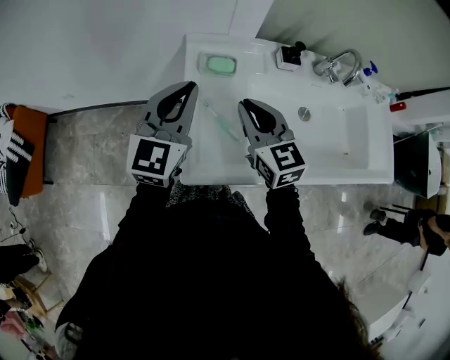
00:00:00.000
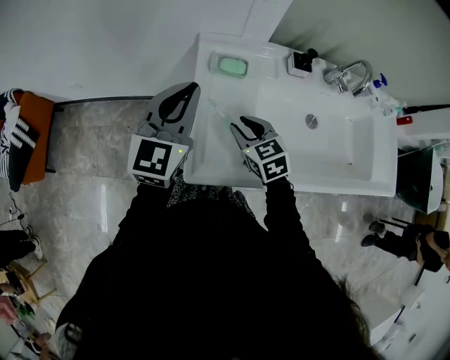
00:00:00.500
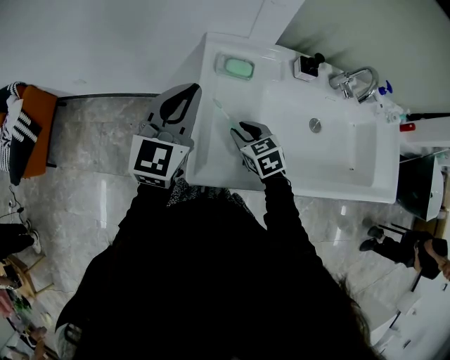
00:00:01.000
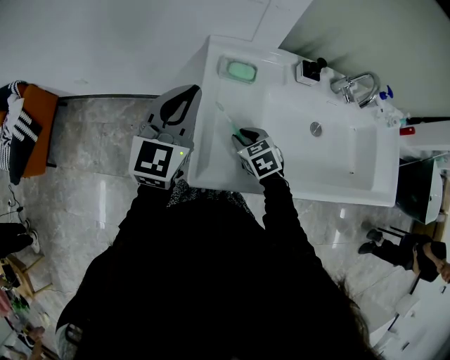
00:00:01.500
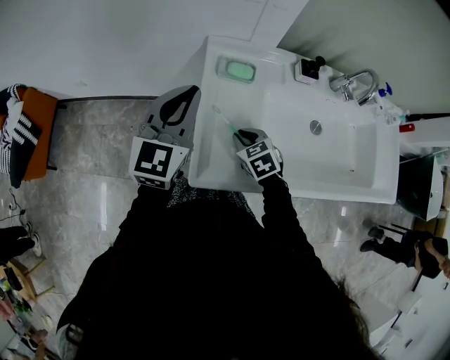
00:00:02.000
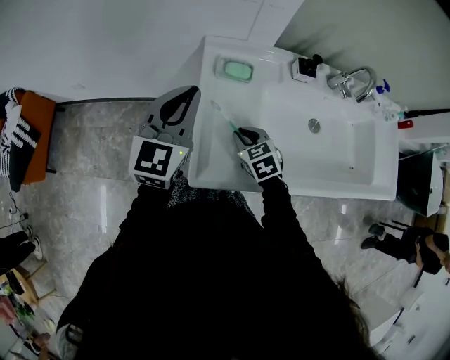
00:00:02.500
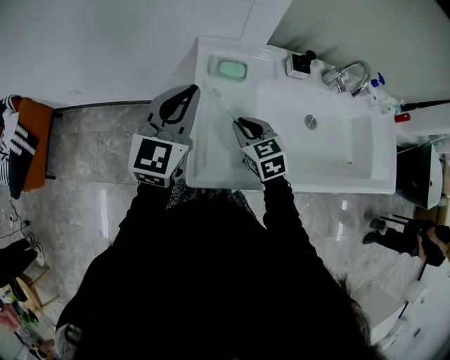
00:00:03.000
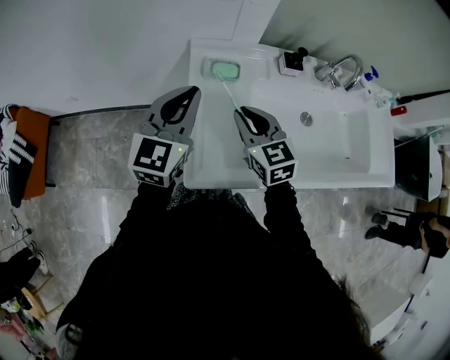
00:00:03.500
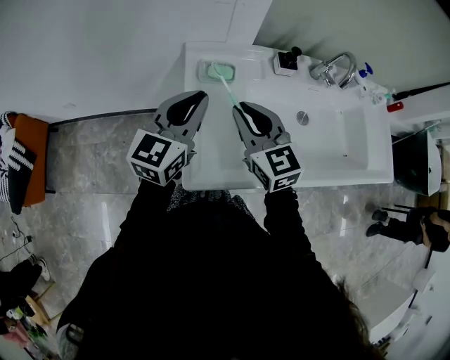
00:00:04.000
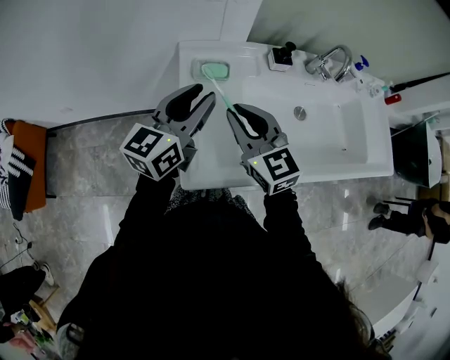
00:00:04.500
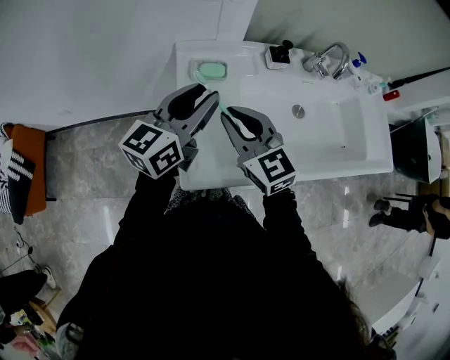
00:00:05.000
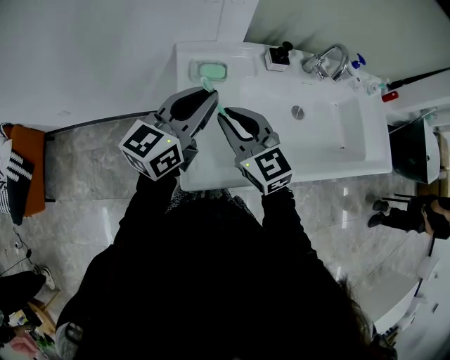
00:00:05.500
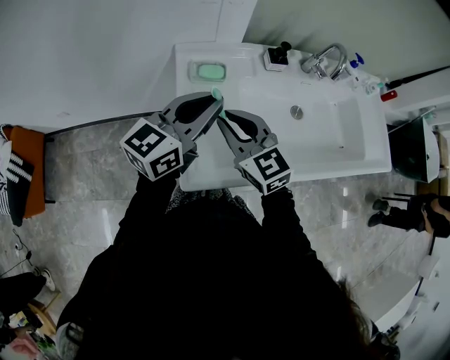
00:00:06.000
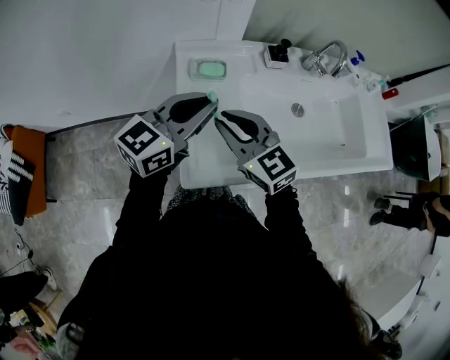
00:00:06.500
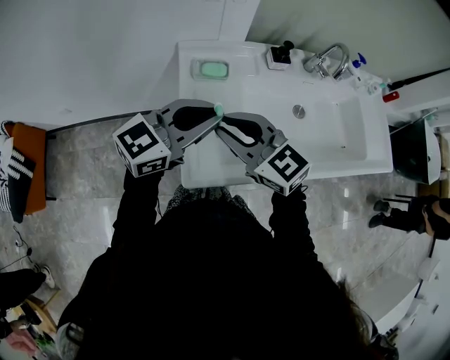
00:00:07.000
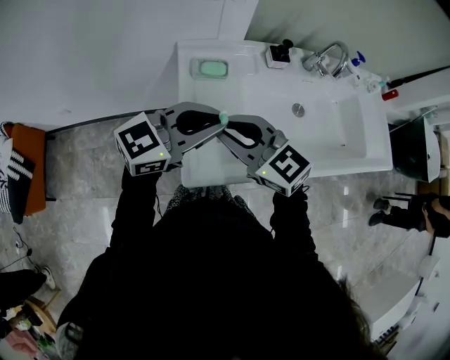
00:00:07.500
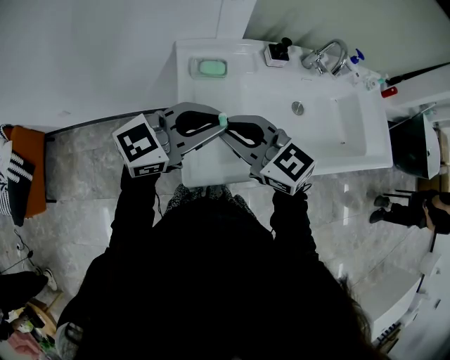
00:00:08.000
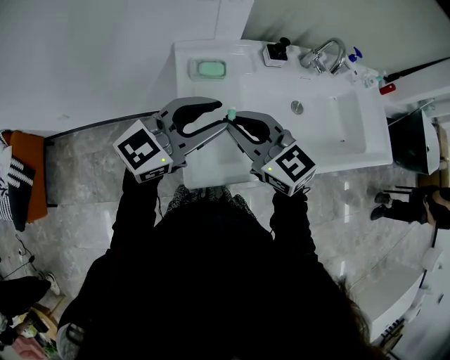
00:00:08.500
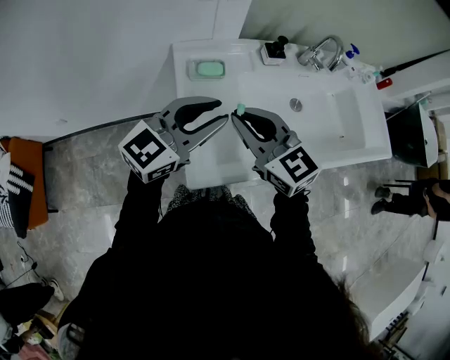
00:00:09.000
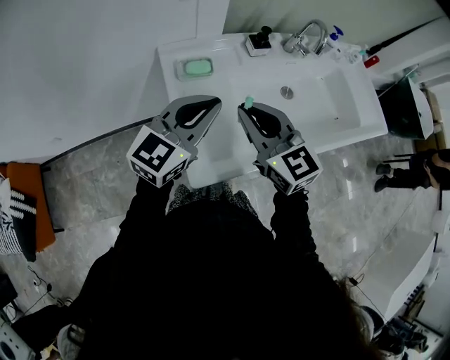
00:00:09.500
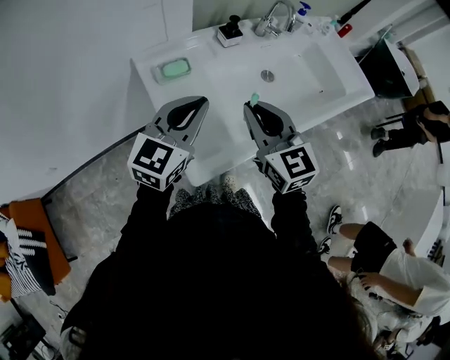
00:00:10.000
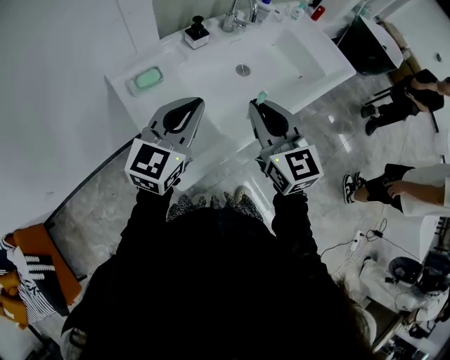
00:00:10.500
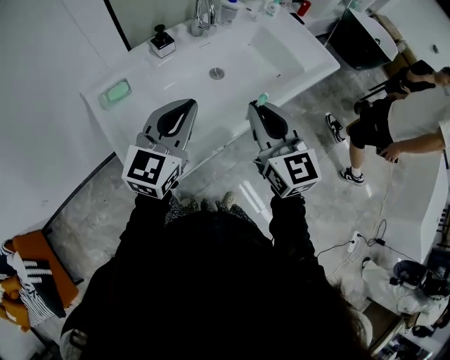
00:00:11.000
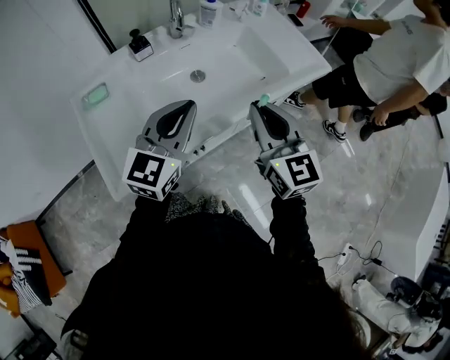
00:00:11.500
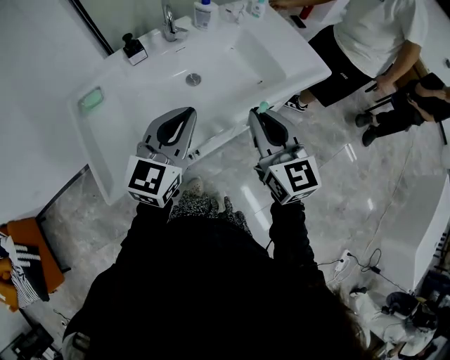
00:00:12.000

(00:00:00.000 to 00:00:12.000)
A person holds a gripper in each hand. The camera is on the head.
00:00:00.000 - 00:00:02.000: The right gripper is displaced downward by some 20 cm, and tips its fingers downward by about 40 degrees.
00:00:02.000 - 00:00:04.000: The left gripper is displaced to the right by about 5 cm; the right gripper goes approximately 20 cm upward, and tilts its fingers some 40 degrees upward.
00:00:04.000 - 00:00:06.000: The left gripper moves approximately 5 cm, rotates roughly 20 degrees, and opens and closes again.
00:00:06.000 - 00:00:08.000: The right gripper changes place by roughly 5 cm. Meanwhile the left gripper moves some 5 cm, and turns by roughly 30 degrees.
00:00:08.000 - 00:00:10.000: The right gripper shifts by some 10 cm, and changes its angle by some 50 degrees, while the left gripper opens, then closes again.
00:00:10.000 - 00:00:12.000: Both grippers travel together to the right, about 30 cm.

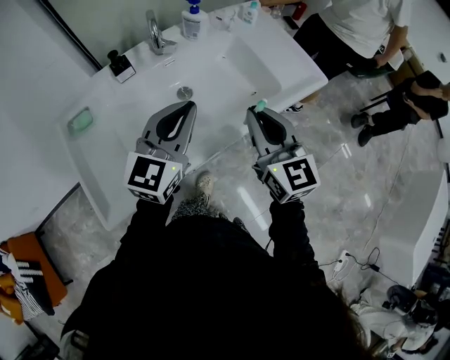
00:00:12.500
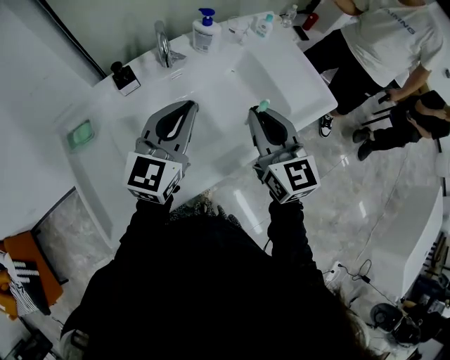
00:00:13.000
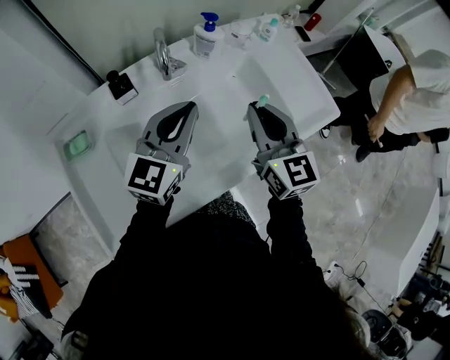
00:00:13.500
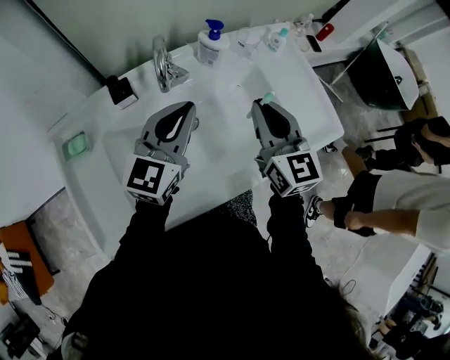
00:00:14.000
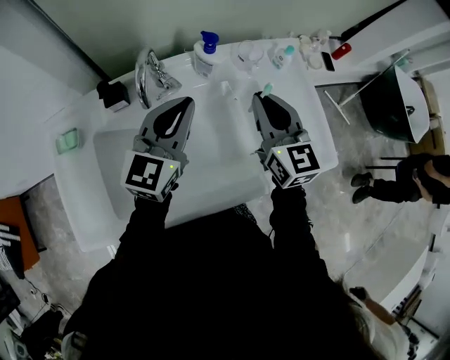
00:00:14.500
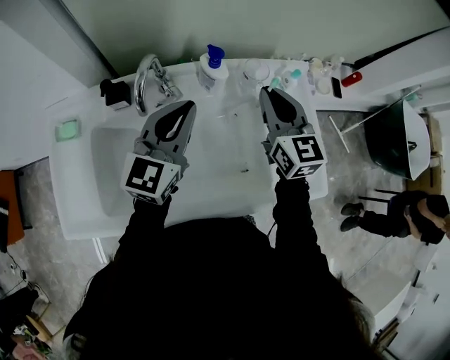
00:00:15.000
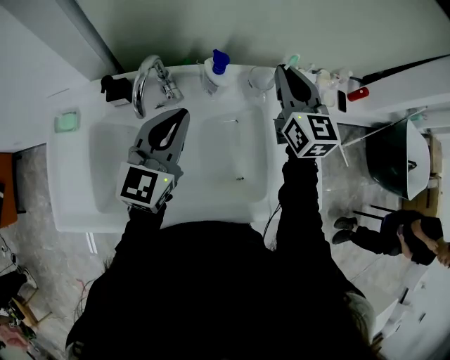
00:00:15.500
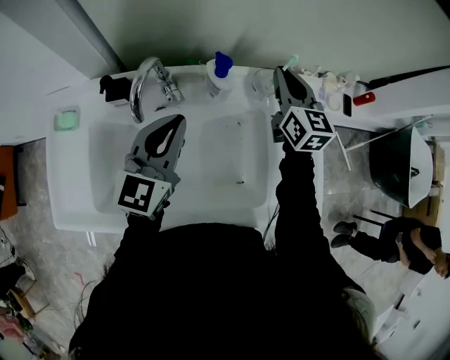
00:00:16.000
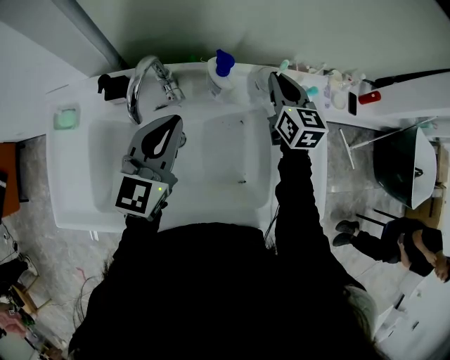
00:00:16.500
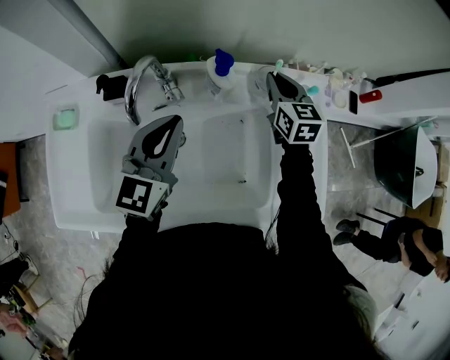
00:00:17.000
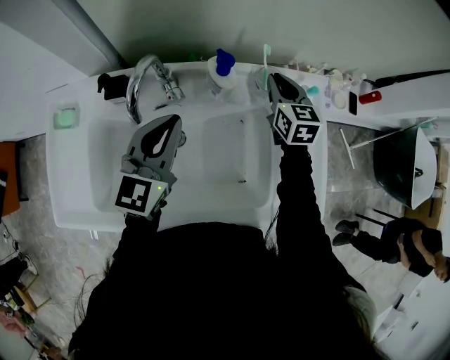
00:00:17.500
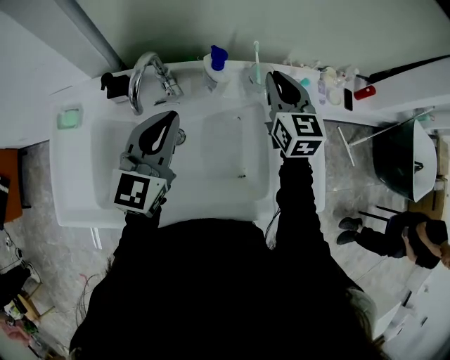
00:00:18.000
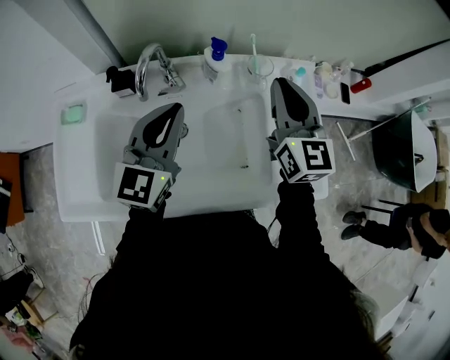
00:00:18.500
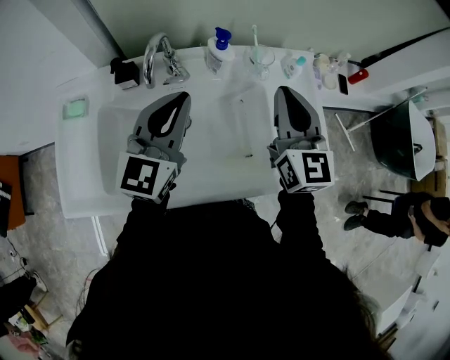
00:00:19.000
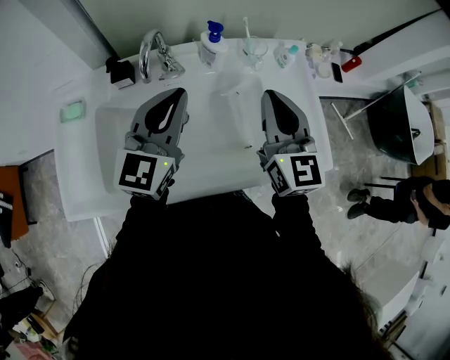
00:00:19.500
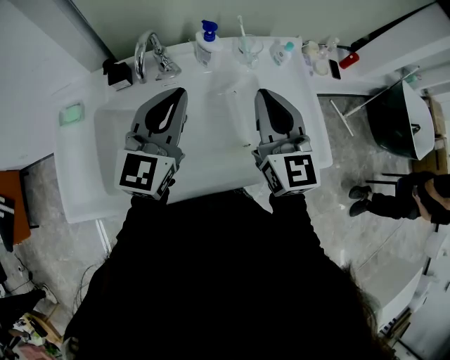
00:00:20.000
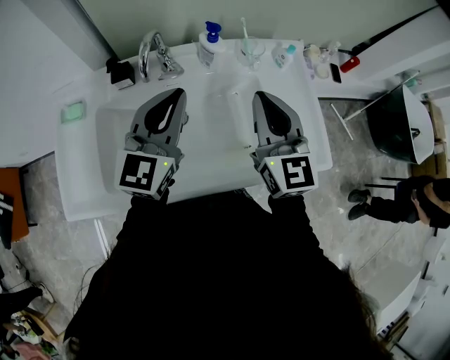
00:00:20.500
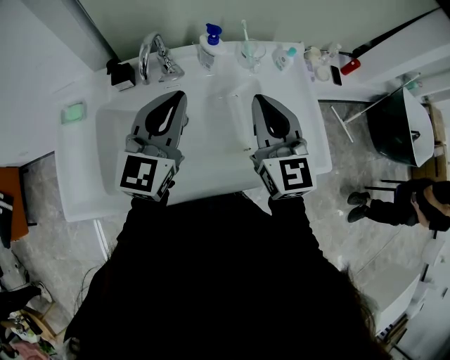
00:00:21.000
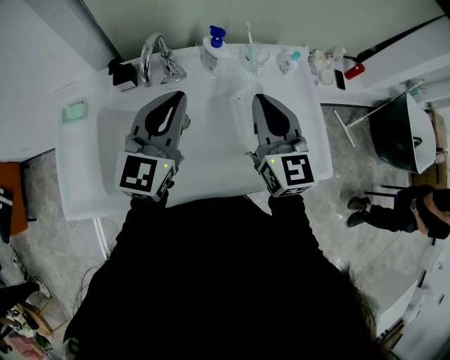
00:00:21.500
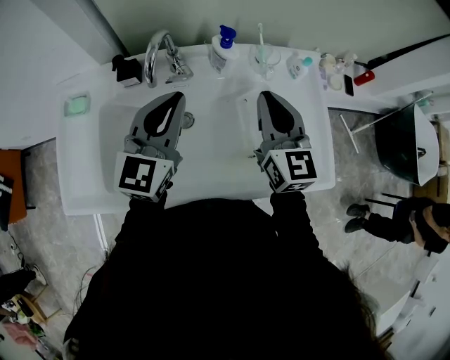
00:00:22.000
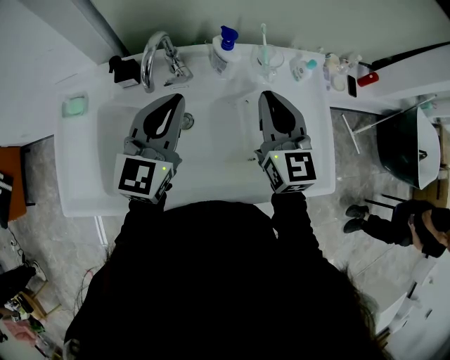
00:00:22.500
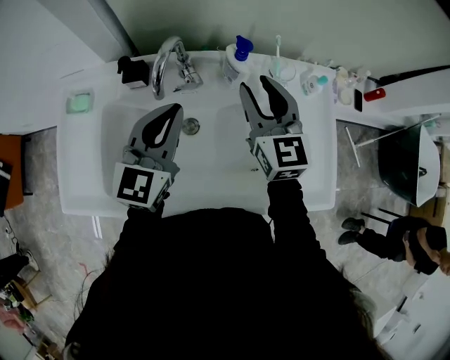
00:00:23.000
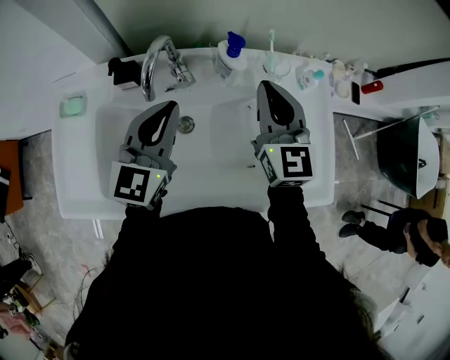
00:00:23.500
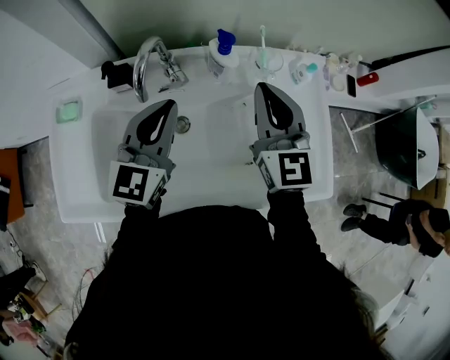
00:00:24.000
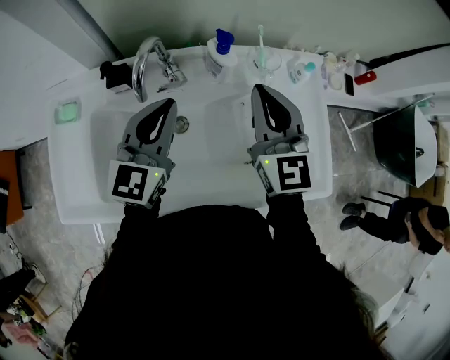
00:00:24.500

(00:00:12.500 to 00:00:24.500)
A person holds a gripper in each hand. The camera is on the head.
00:00:12.500 - 00:00:14.500: The two grippers go approximately 25 cm forward.
00:00:14.500 - 00:00:16.500: The right gripper heads forward, covering approximately 20 cm.
00:00:16.500 - 00:00:18.500: The right gripper moves backward and upward, approximately 20 cm; the left gripper changes place by some 5 cm.
00:00:18.500 - 00:00:20.500: The right gripper is displaced backward by roughly 10 cm.
00:00:20.500 - 00:00:22.500: The right gripper moves forward, some 5 cm, while the left gripper shifts by some 5 cm.
00:00:22.500 - 00:00:24.500: The right gripper opens, then closes again.

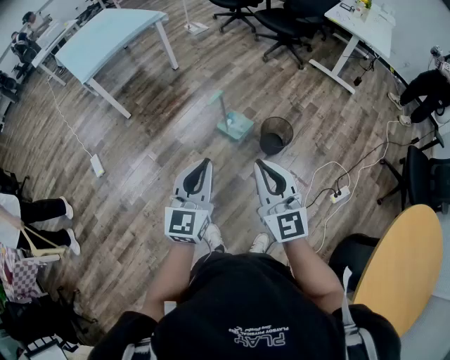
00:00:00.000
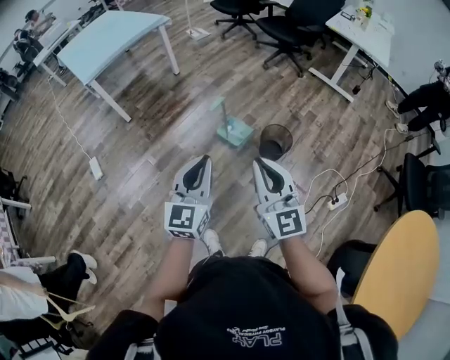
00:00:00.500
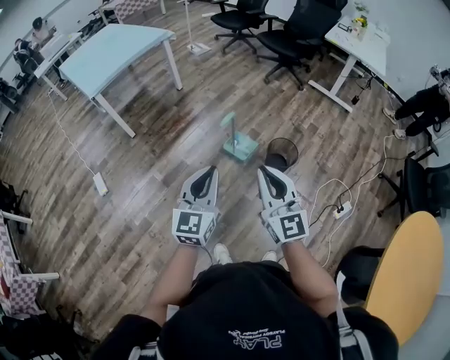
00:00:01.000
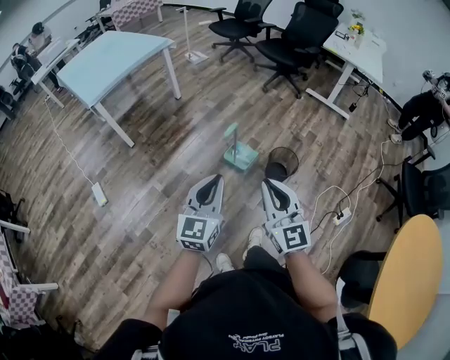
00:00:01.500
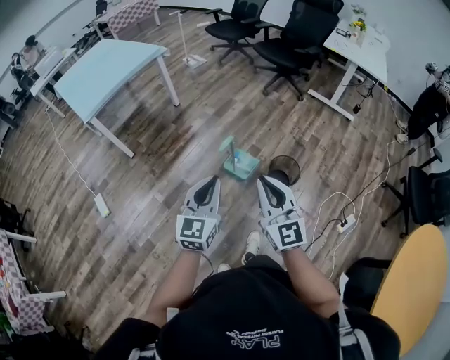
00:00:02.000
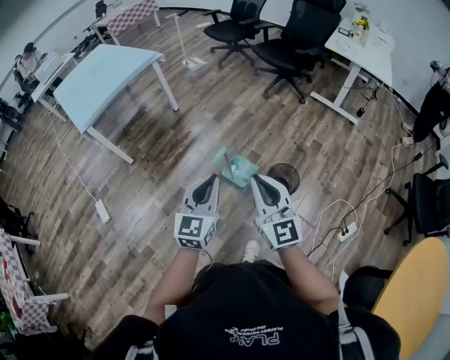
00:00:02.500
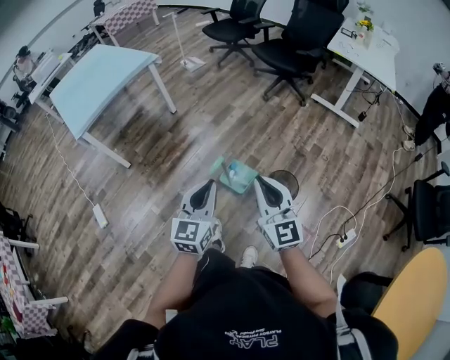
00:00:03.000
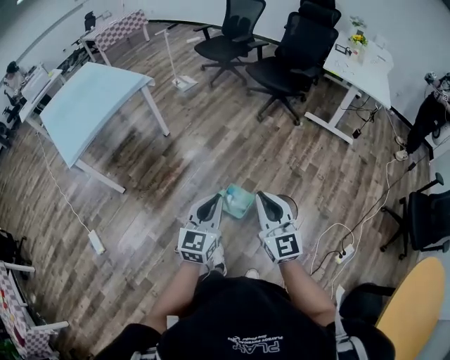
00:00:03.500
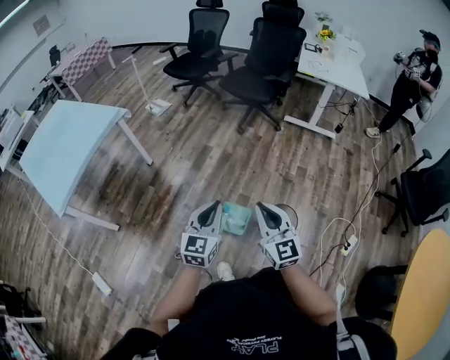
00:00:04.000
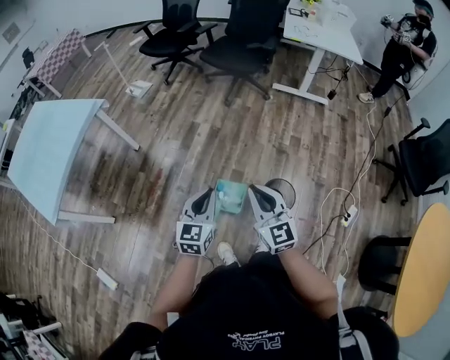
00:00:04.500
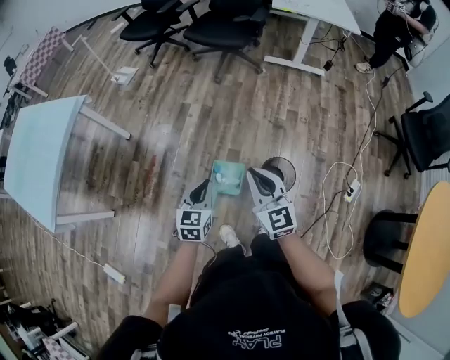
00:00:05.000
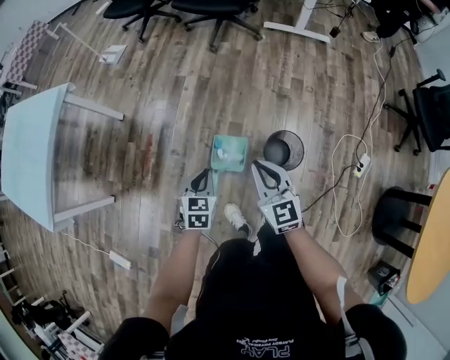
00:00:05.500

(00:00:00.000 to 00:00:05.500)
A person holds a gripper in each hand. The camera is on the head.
00:00:00.000 - 00:00:02.000: The right gripper heads forward and to the left, covering approximately 15 cm. The left gripper travels forward by approximately 15 cm.
00:00:02.000 - 00:00:03.500: Both grippers move forward, about 20 cm.
00:00:03.500 - 00:00:05.500: Both grippers travel together downward and forward, approximately 25 cm. The right gripper swivels roughly 30 degrees. Meanwhile the left gripper tilts its fingers roughly 30 degrees downward.
